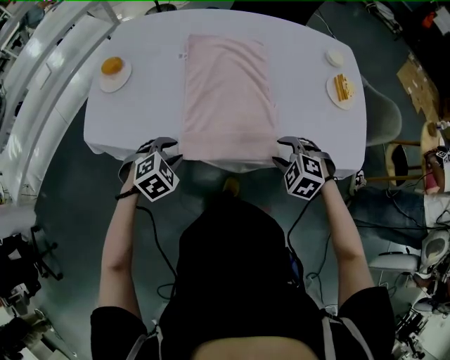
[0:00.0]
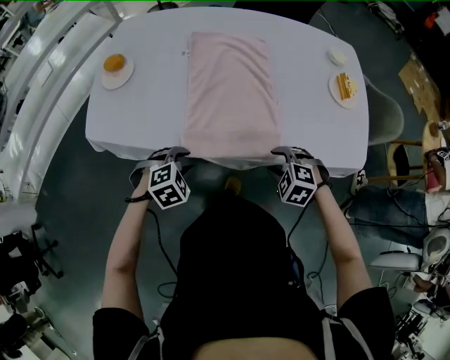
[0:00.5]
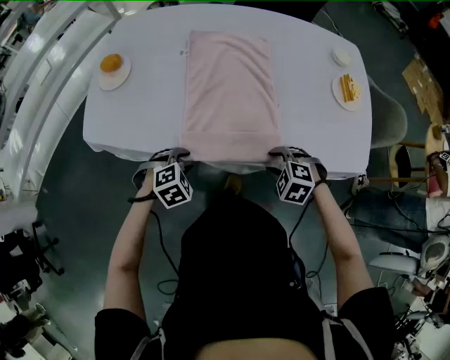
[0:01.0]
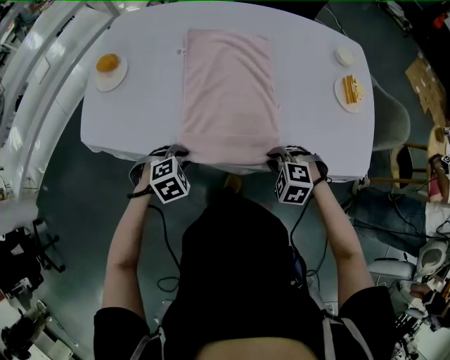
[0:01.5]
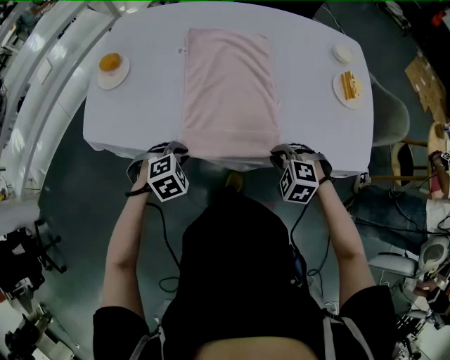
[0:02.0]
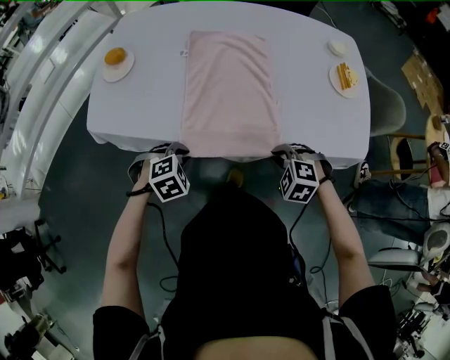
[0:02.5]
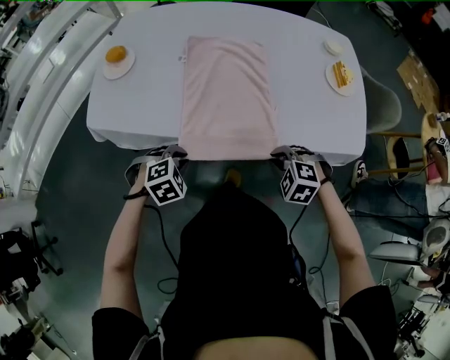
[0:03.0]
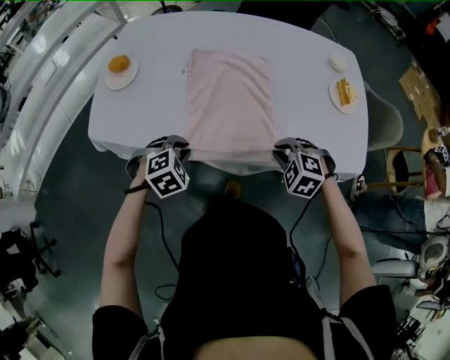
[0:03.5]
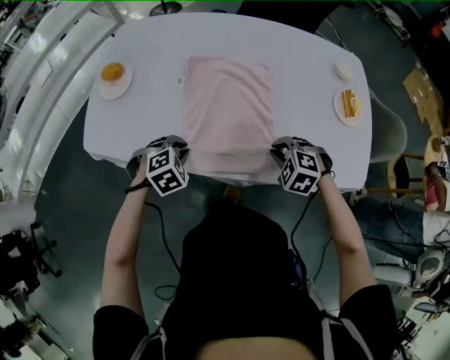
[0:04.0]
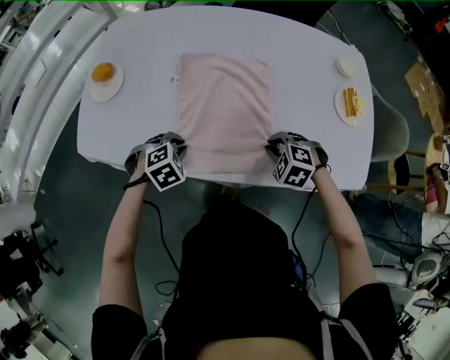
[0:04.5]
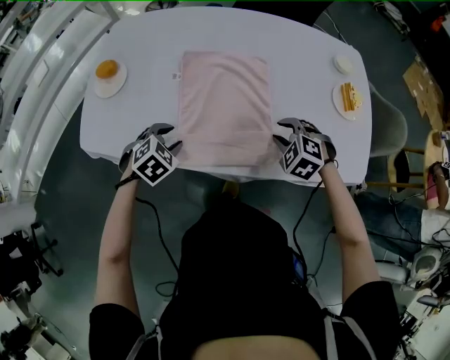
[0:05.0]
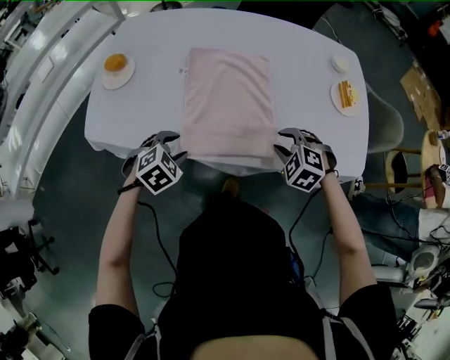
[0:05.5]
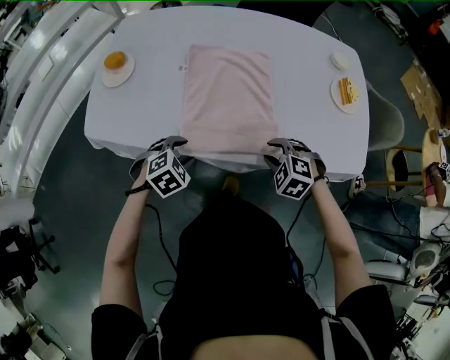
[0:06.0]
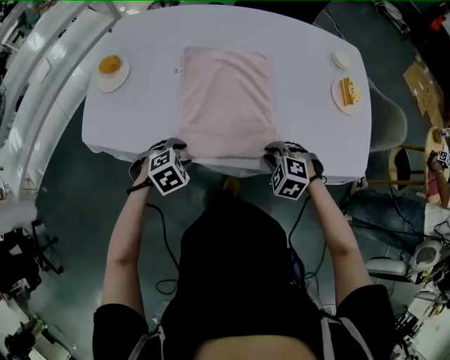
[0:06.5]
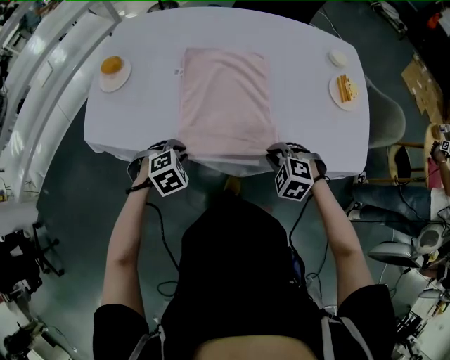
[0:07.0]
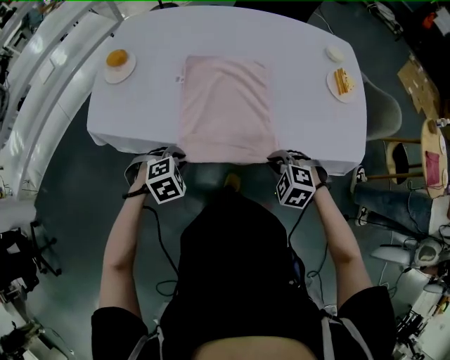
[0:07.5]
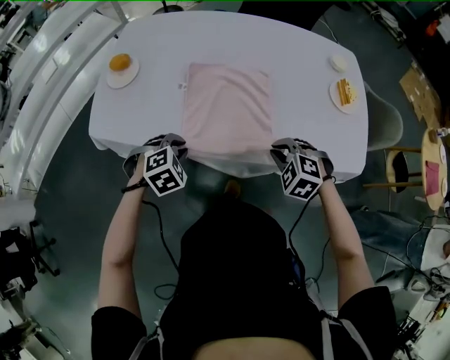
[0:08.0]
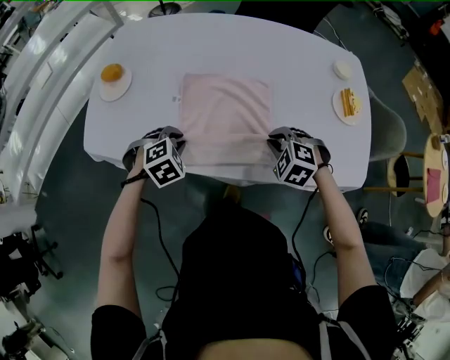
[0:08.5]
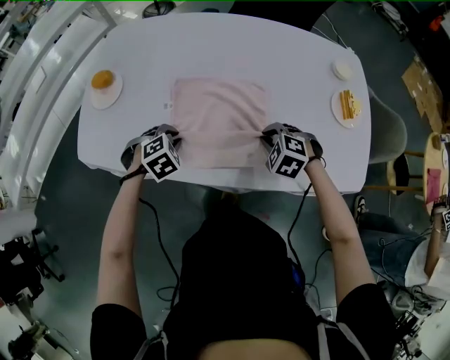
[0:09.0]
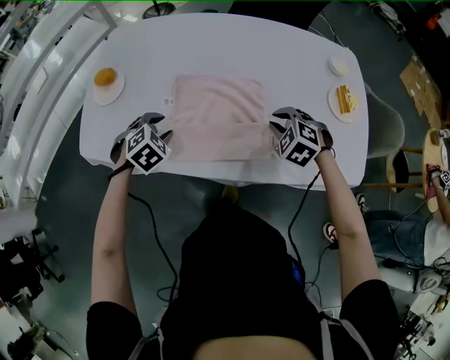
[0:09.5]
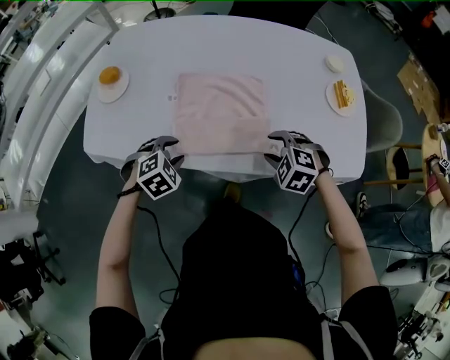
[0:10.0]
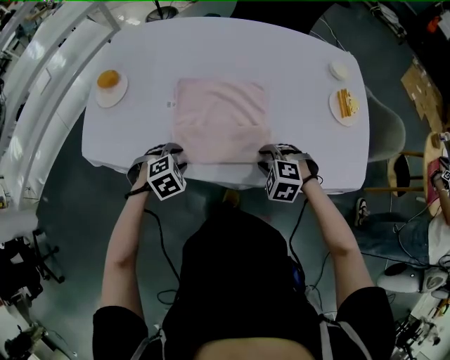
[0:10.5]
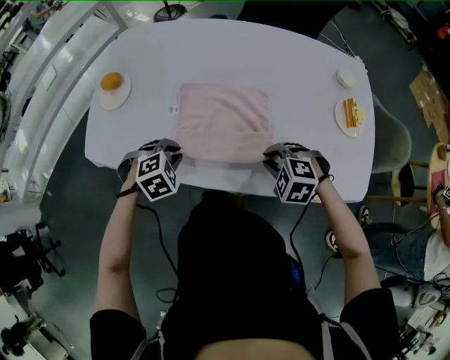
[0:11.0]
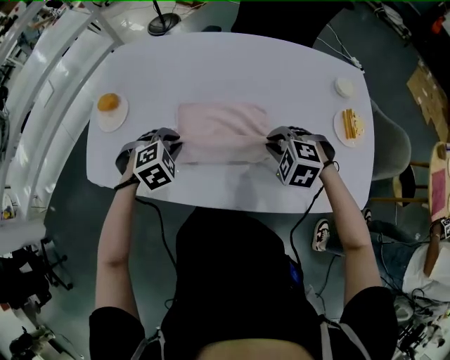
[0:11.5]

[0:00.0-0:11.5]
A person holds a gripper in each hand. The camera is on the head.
0:00.0 to 0:02.0: The right gripper closes up, while the left gripper closes up.
0:02.0 to 0:04.0: The grippers both shift forward by roughly 5 cm.
0:04.0 to 0:06.0: Both grippers move backward, some 5 cm. The right gripper opens; the left gripper opens.
0:06.0 to 0:07.5: Both grippers move backward, about 10 cm. The left gripper closes, while the right gripper closes.
0:07.5 to 0:09.5: Both grippers move forward, roughly 20 cm. The left gripper opens its fingers.
0:09.5 to 0:11.5: The left gripper moves roughly 10 cm backward and comes back, and closes; the right gripper goes backward and returns, some 10 cm each way, and opens, then closes again.

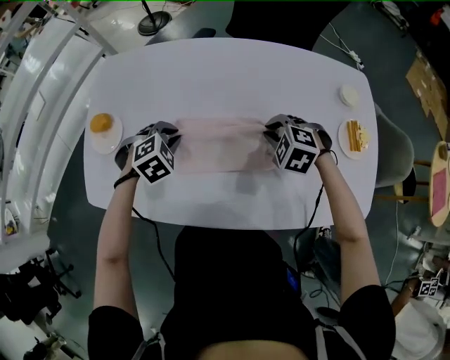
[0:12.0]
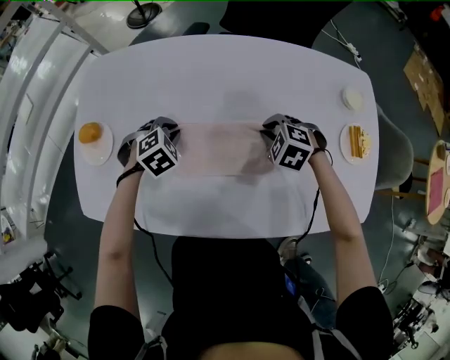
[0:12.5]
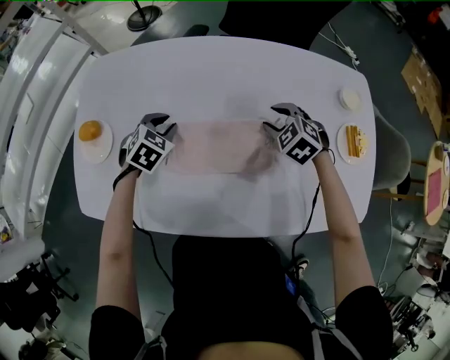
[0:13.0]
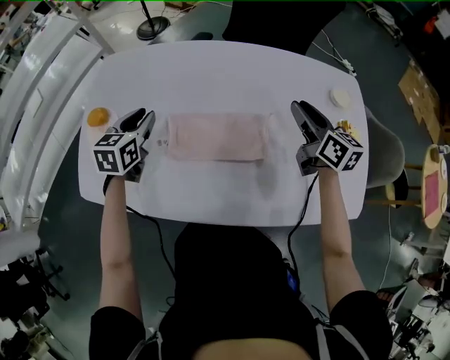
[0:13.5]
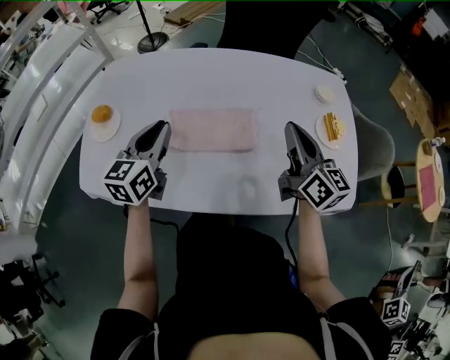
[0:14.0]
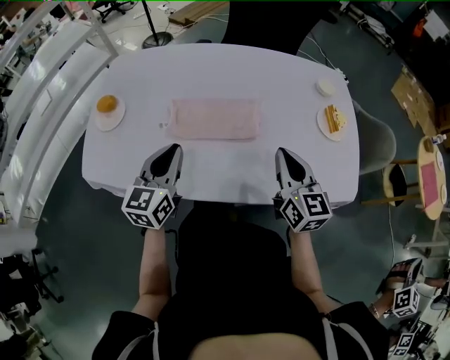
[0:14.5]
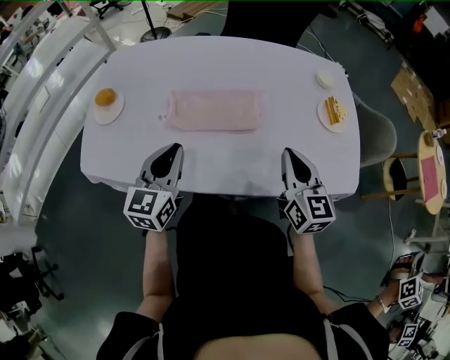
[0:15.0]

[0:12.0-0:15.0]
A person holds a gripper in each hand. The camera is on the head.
0:12.0 to 0:13.5: The left gripper travels upward and to the left by roughly 10 cm, and rotates around the line of its fingers by some 50 degrees, counterclockwise from behind. The right gripper moves upward and to the right, some 15 cm, angles its fingers upward, by about 50 degrees, and opens up.
0:13.5 to 0:15.0: The right gripper heads backward, covering some 25 cm, changes its angle by roughly 20 degrees, and closes up. The left gripper is displaced backward and to the right by roughly 25 cm, and changes its angle by roughly 20 degrees.

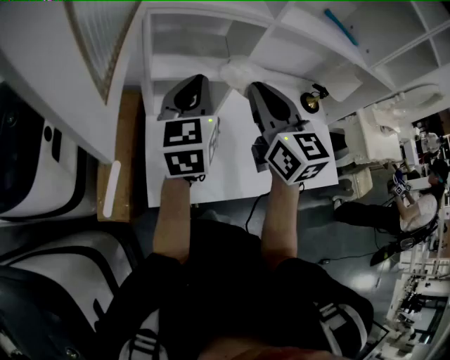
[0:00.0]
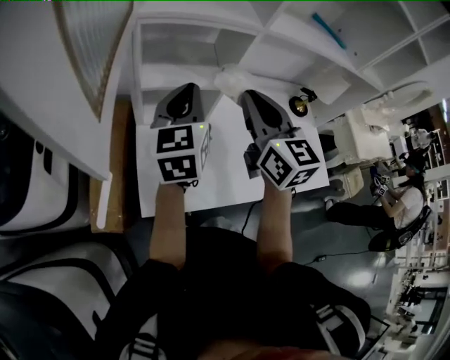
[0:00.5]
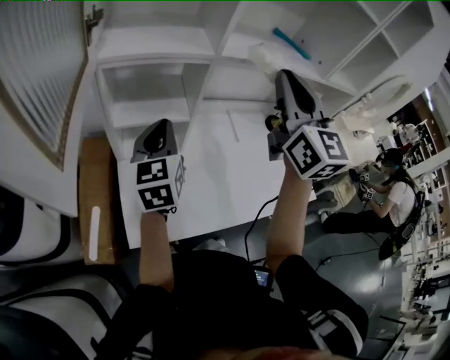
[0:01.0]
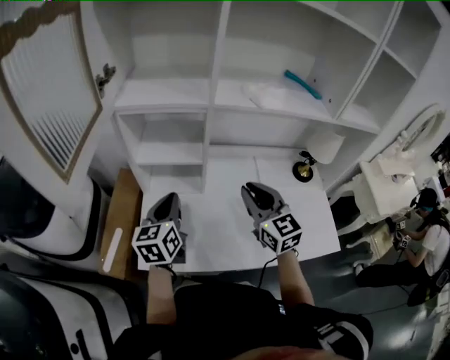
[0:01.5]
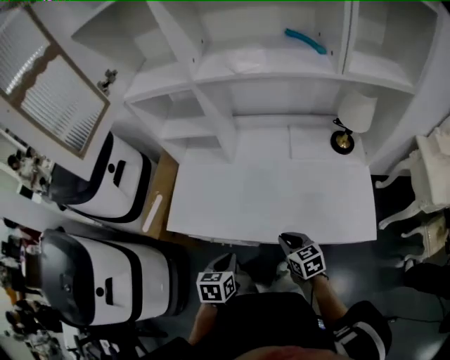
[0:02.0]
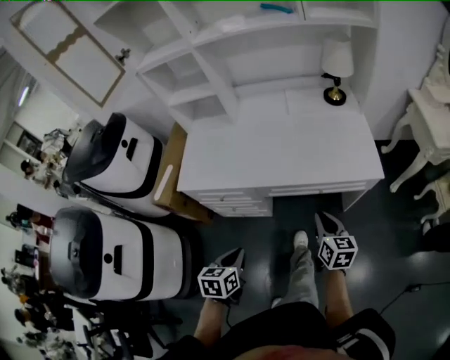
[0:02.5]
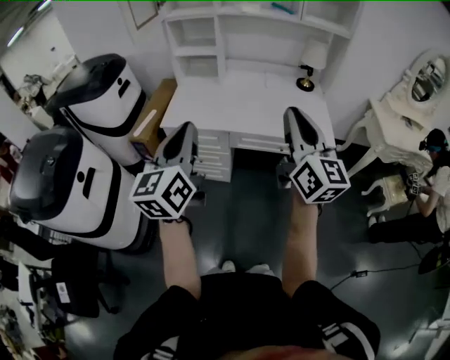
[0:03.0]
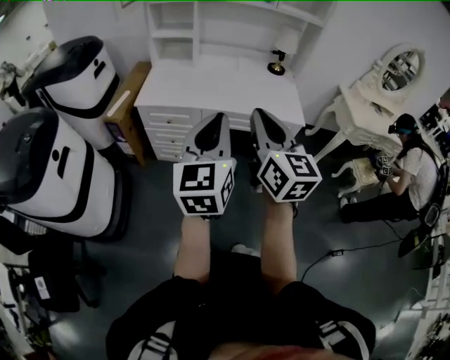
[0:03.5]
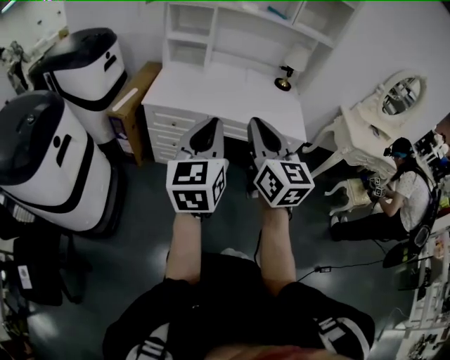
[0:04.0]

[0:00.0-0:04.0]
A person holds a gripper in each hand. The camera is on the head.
0:00.0 to 0:02.0: The left gripper heads backward, downward and to the right, covering approximately 50 cm, and tilts its fingers about 40 degrees downward. The right gripper goes about 50 cm to the right, downward and backward, and turns by roughly 40 degrees.
0:02.0 to 0:04.0: The two grippers go roughly 50 cm backward and upward. The right gripper tips its fingers upward by approximately 40 degrees; the left gripper points its fingers roughly 50 degrees further upward.
